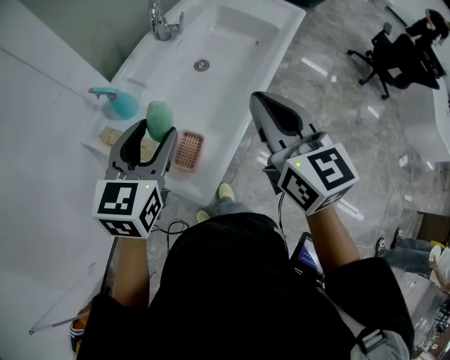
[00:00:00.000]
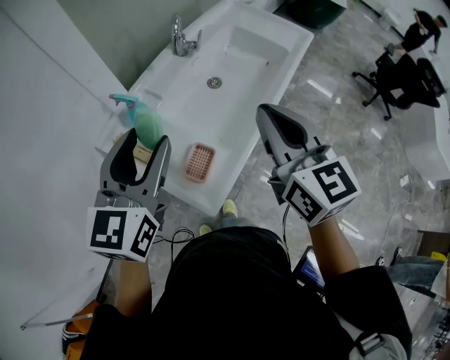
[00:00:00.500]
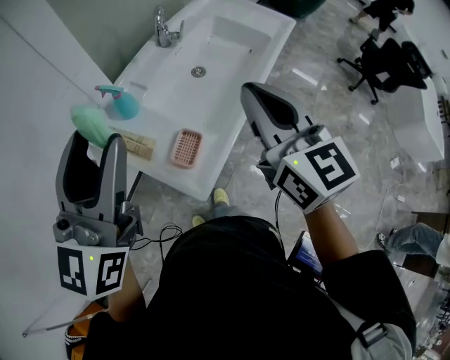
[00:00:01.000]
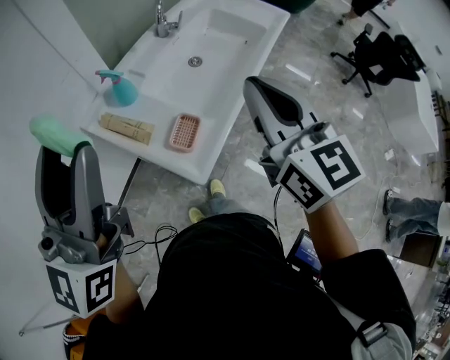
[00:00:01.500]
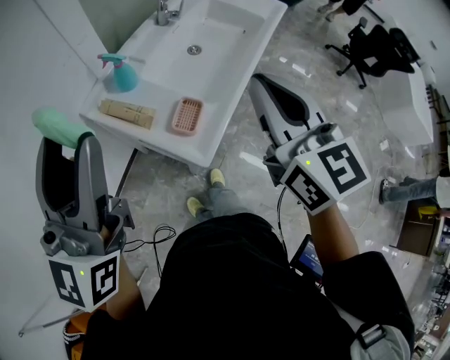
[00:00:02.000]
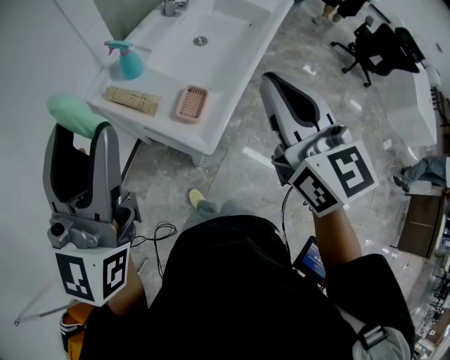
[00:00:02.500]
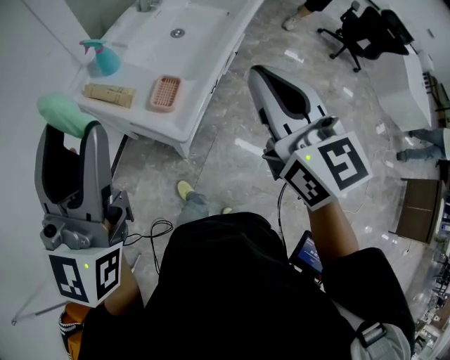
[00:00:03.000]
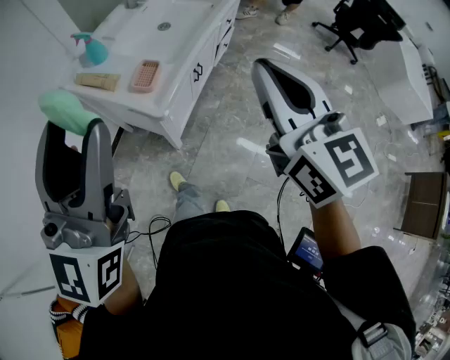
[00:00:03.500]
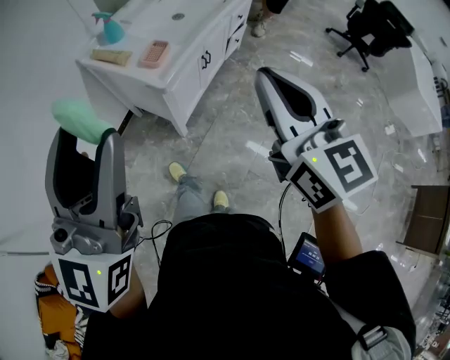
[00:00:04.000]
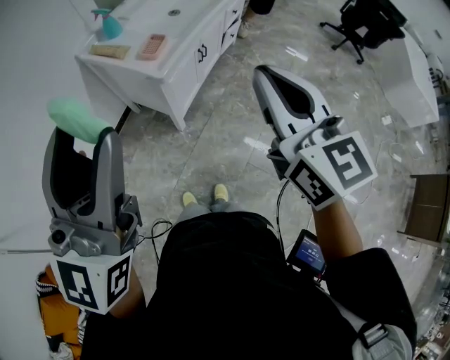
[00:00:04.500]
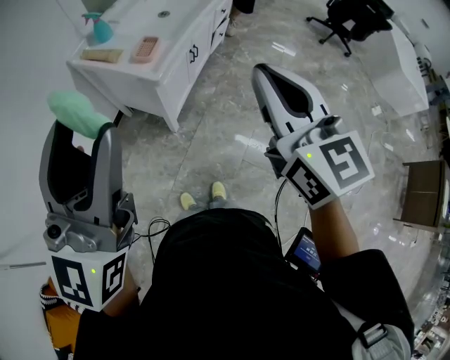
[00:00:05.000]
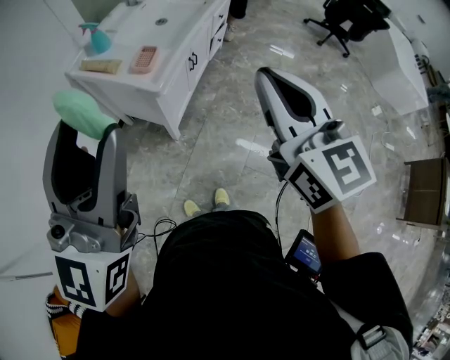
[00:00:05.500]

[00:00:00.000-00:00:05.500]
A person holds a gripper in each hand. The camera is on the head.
00:00:00.000 to 00:00:02.000: The right gripper heads backward, to the left and upward, covering some 15 cm. Meanwhile the left gripper heads upward, backward and to the left, covering roughly 30 cm, and angles its fingers upward, by some 40 degrees.
00:00:02.000 to 00:00:03.500: Both grippers move backward and to the right, roughly 20 cm.
00:00:03.500 to 00:00:05.500: Both grippers move backward, about 15 cm.

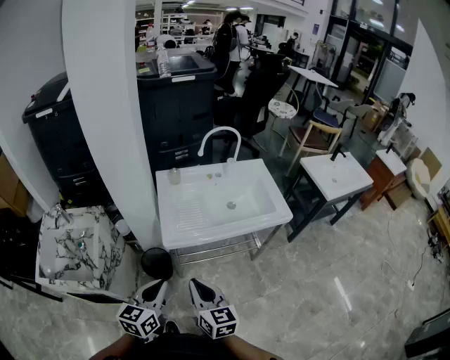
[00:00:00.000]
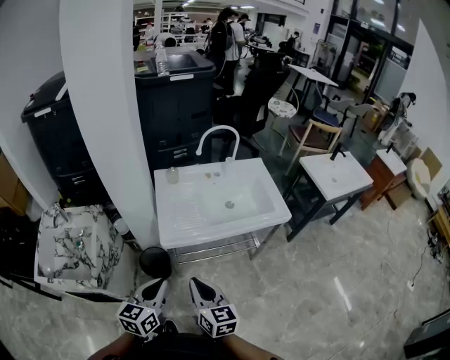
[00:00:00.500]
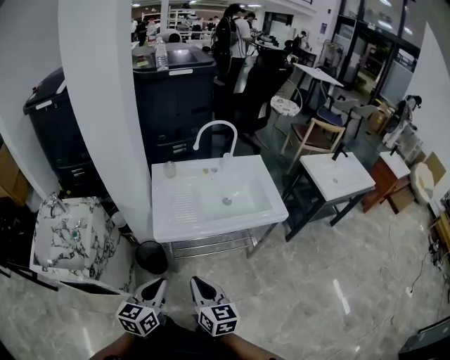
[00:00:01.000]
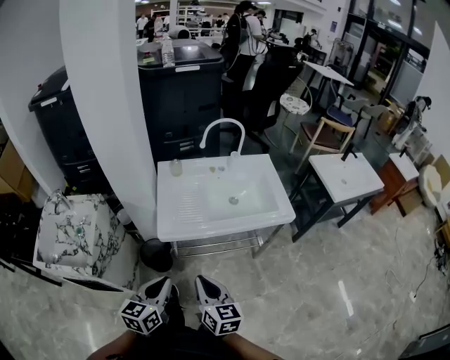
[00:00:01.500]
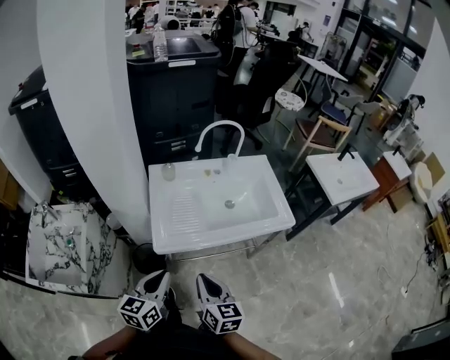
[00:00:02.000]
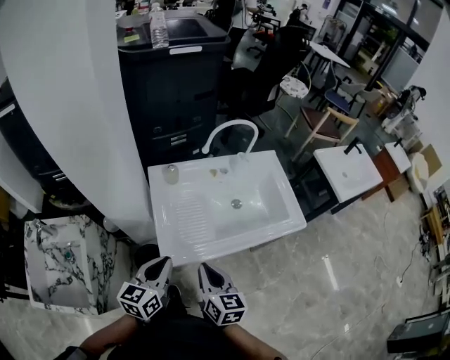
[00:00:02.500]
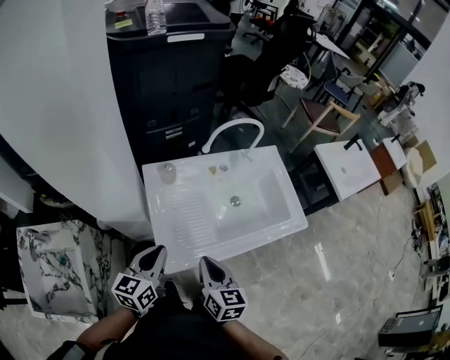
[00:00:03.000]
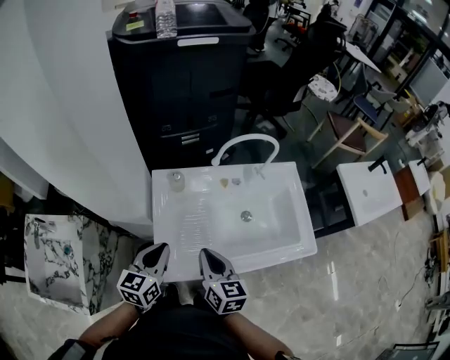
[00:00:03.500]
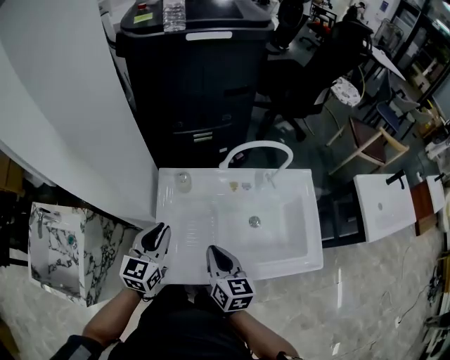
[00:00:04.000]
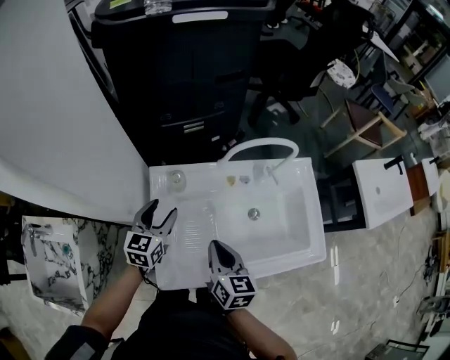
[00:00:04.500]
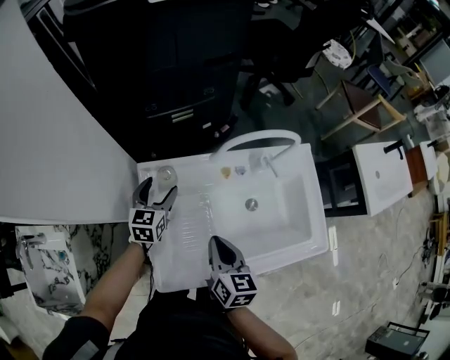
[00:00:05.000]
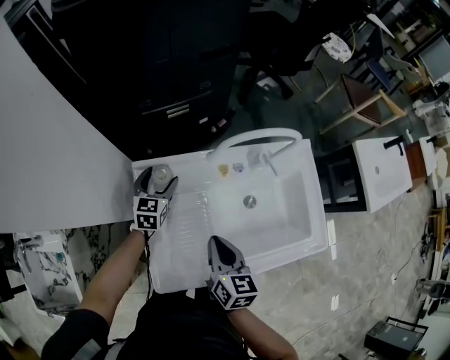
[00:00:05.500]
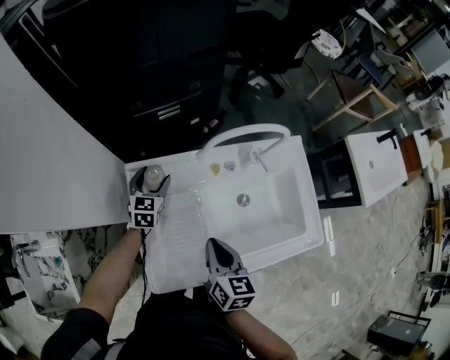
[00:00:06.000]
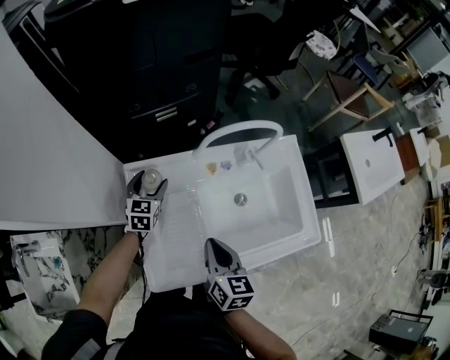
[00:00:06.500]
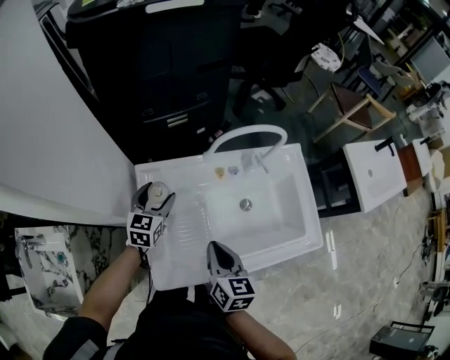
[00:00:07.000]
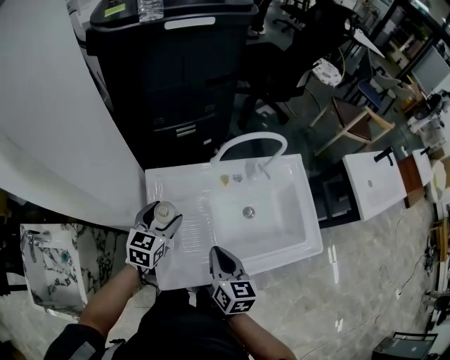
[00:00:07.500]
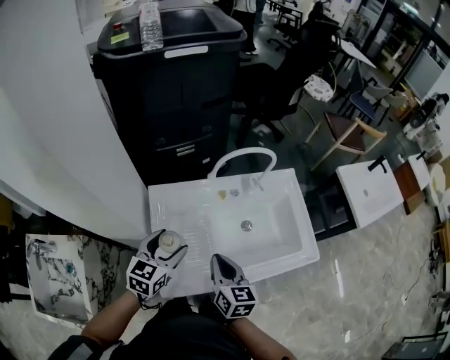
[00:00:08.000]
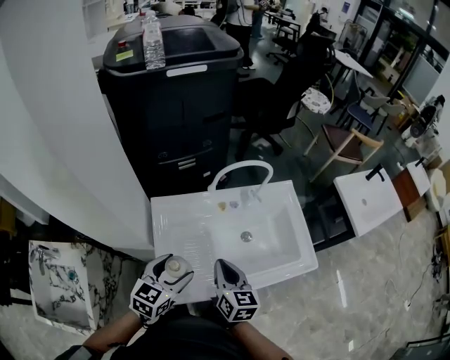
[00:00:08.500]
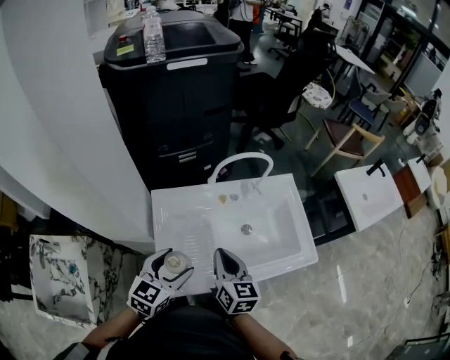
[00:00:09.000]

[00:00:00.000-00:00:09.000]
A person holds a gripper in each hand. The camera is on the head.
00:00:00.000 to 00:00:02.000: The left gripper travels forward by approximately 10 cm; the right gripper moves forward and to the right, roughly 10 cm.
00:00:02.000 to 00:00:04.500: The two grippers go about 40 cm forward. The left gripper opens.
00:00:04.500 to 00:00:07.000: The left gripper is displaced forward by about 5 cm.
00:00:07.000 to 00:00:09.000: The left gripper moves backward and upward, about 25 cm. Meanwhile the right gripper travels upward by some 5 cm.

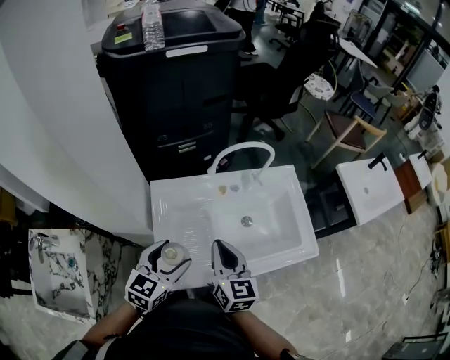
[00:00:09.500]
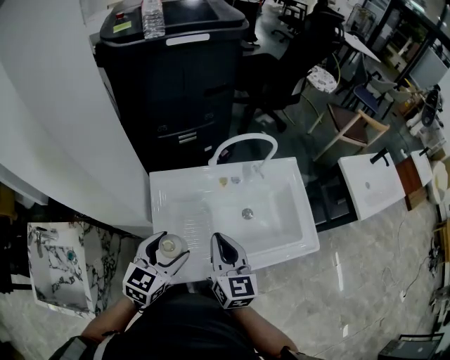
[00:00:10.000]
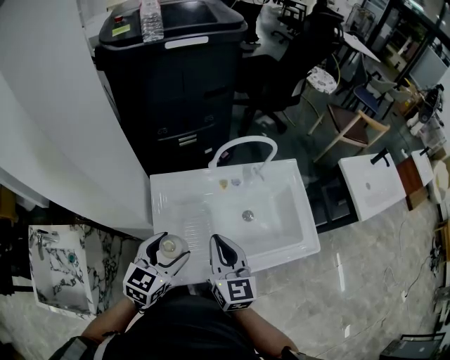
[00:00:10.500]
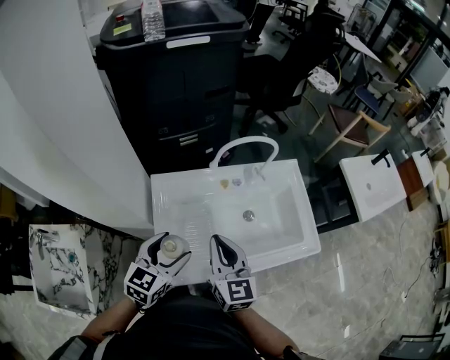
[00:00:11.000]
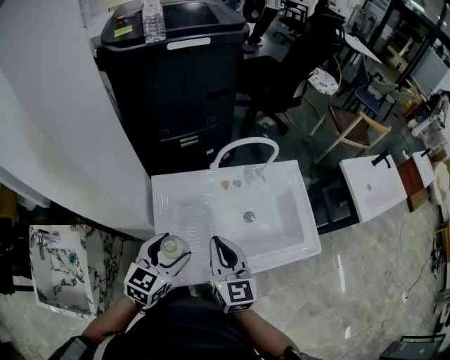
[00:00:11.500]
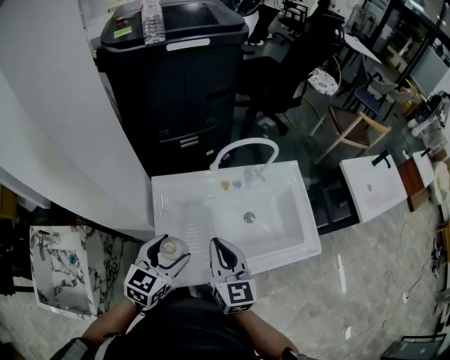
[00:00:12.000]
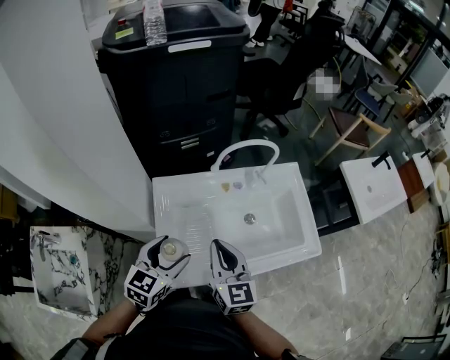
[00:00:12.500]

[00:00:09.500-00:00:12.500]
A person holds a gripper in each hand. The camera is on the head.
00:00:09.500 to 00:00:11.000: The grippers stay close to where they were, moving slightly.
00:00:11.000 to 00:00:12.500: The two grippers keep their place.

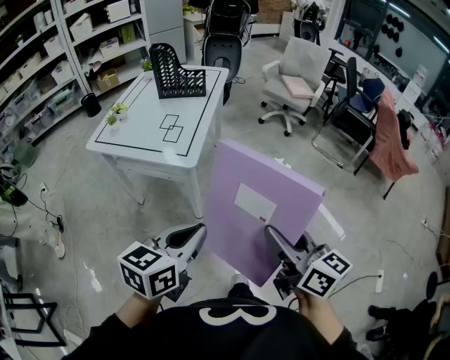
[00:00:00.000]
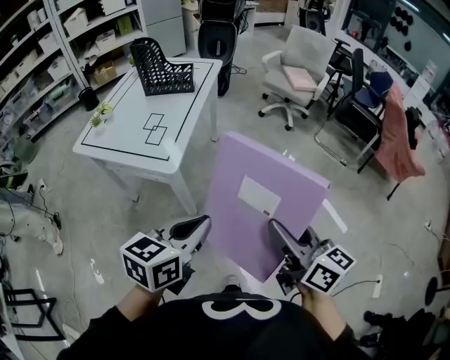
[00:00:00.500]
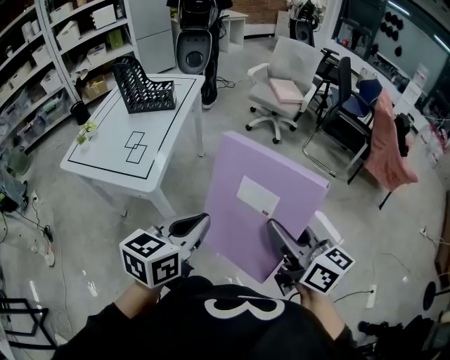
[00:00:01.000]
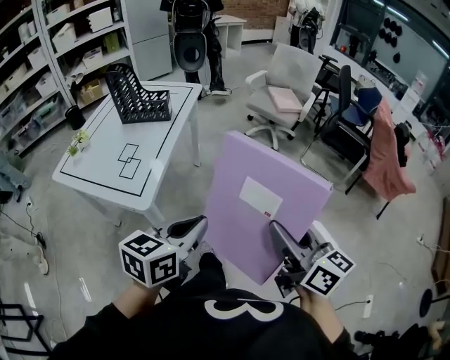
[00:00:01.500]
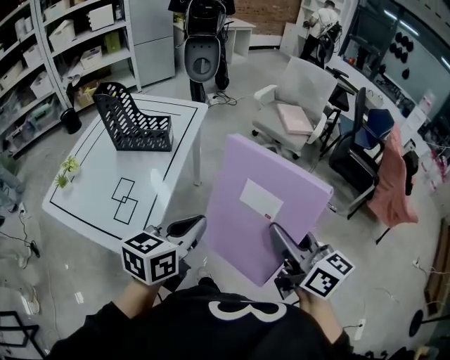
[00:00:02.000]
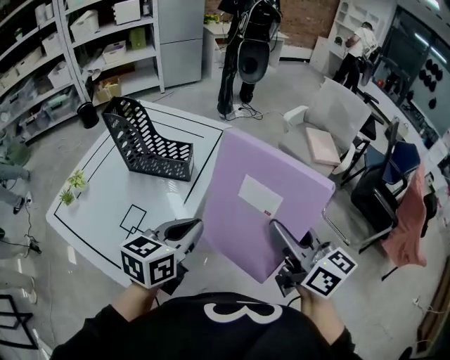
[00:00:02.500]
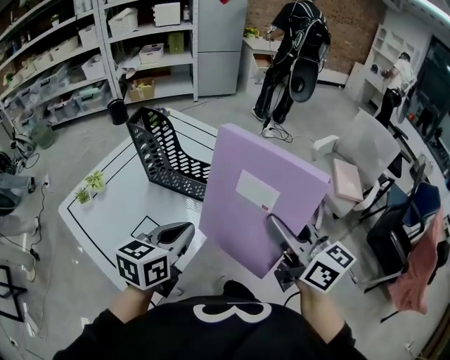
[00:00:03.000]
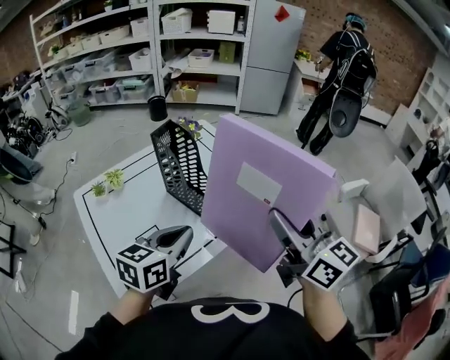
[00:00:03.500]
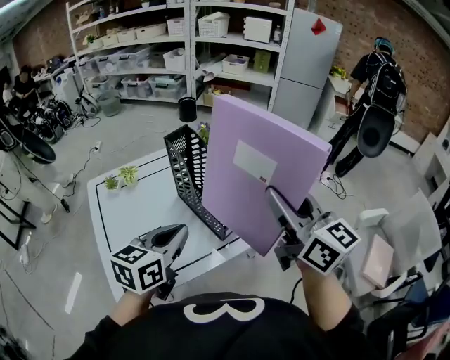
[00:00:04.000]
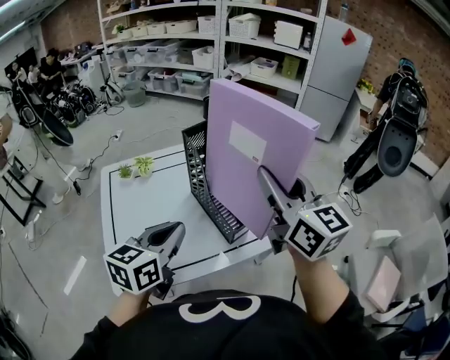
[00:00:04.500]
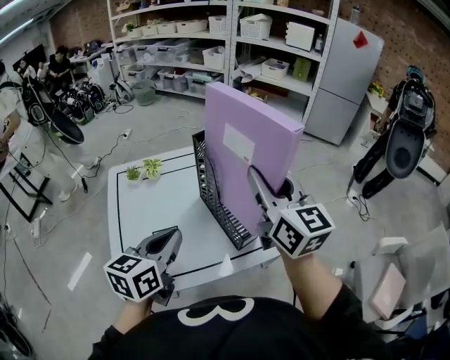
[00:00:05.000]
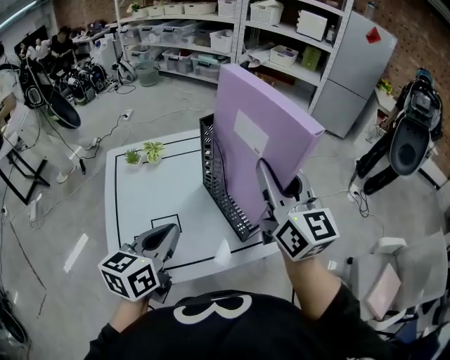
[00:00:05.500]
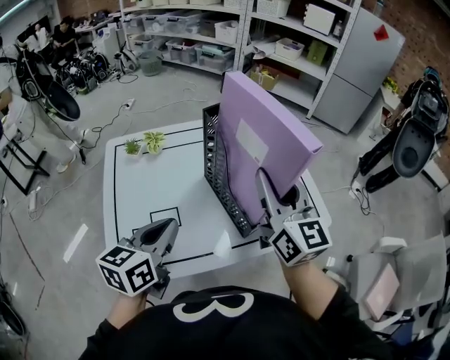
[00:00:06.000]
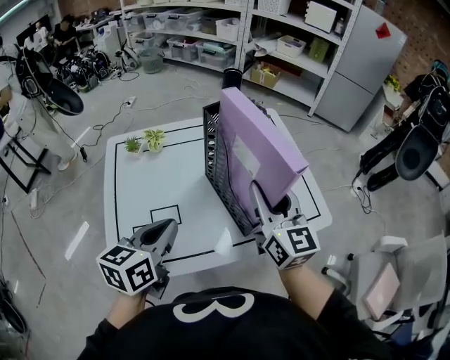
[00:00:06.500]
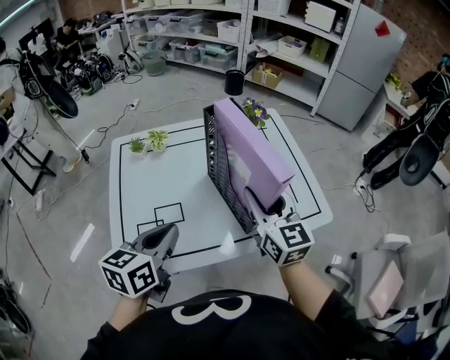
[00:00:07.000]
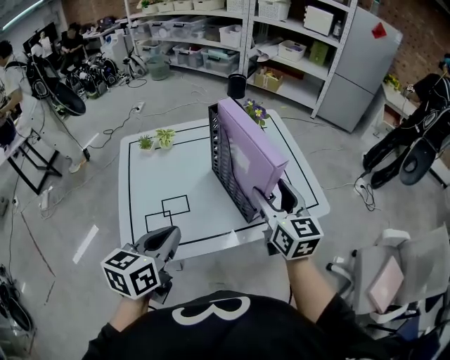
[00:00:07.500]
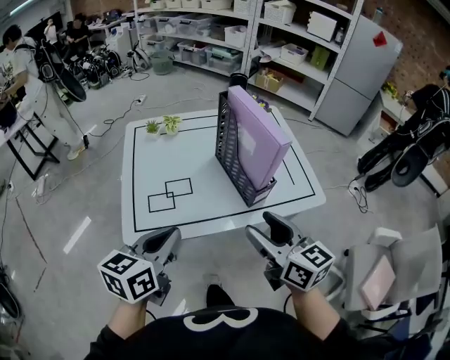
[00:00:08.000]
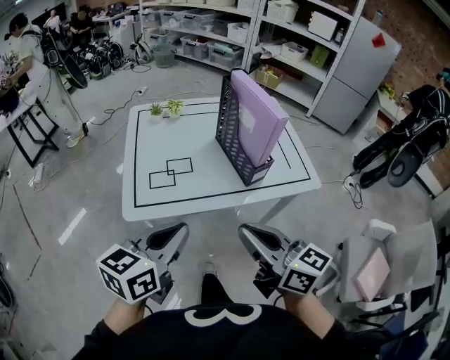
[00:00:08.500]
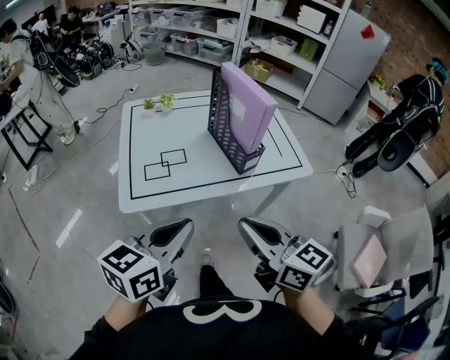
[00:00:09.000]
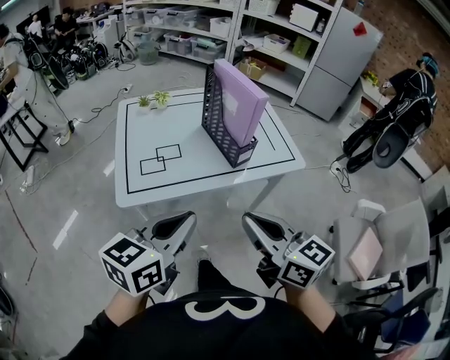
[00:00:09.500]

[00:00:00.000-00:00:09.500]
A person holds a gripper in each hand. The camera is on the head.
00:00:00.000 to 00:00:02.000: The two grippers travel together, forward, some 40 cm.
00:00:02.000 to 00:00:04.000: The right gripper shifts by some 50 cm, and rotates approximately 50 degrees. Meanwhile the left gripper changes place by approximately 35 cm, and swivels some 50 degrees.
00:00:04.000 to 00:00:05.500: The right gripper goes about 15 cm forward and to the left, while the left gripper shifts roughly 10 cm to the left.
00:00:05.500 to 00:00:07.500: The left gripper is displaced backward by roughly 10 cm; the right gripper moves downward and backward, some 10 cm, and opens.
00:00:07.500 to 00:00:09.500: The left gripper travels backward by about 20 cm; the right gripper is displaced backward by roughly 30 cm, turns by about 20 degrees, and closes.
